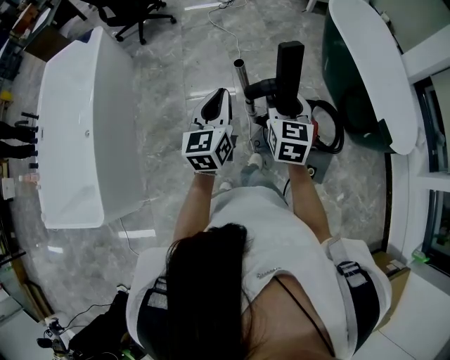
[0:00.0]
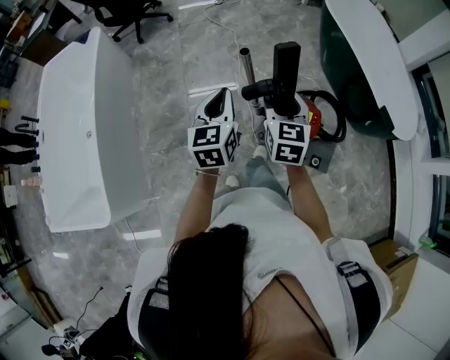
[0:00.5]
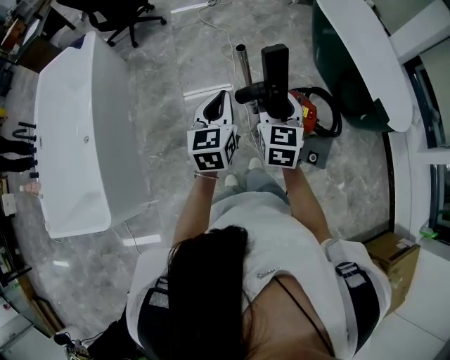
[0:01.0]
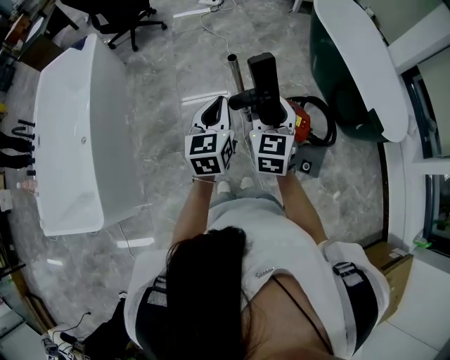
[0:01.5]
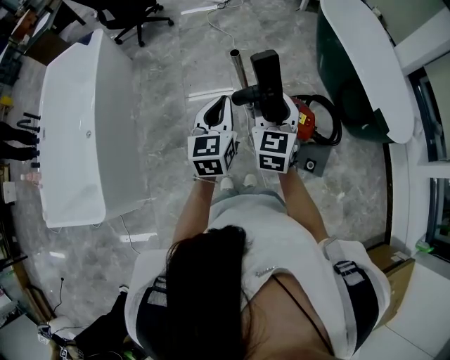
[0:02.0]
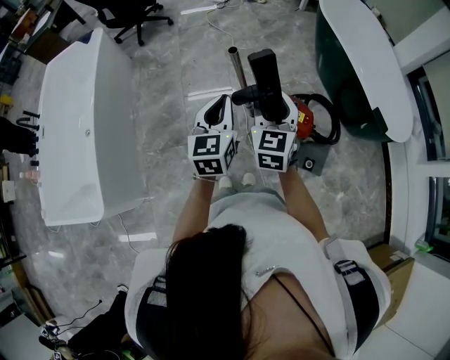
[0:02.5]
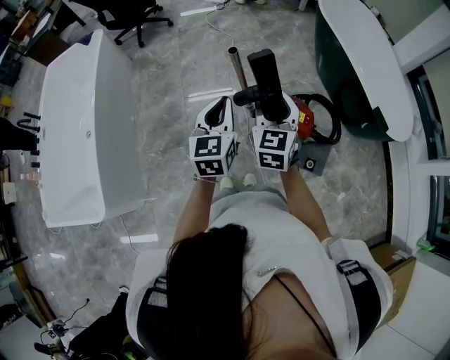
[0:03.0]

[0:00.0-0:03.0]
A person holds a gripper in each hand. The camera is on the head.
0:00.0 to 0:01.5: Both grippers travel together backward, approximately 5 cm.
0:01.5 to 0:03.0: There are only small adjustments of the grippers.

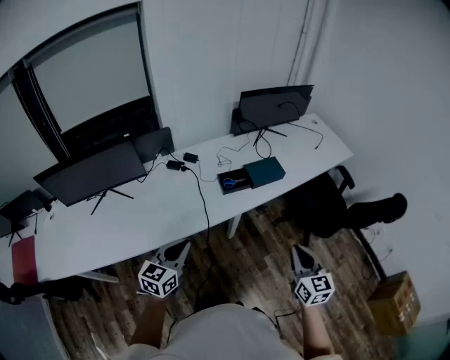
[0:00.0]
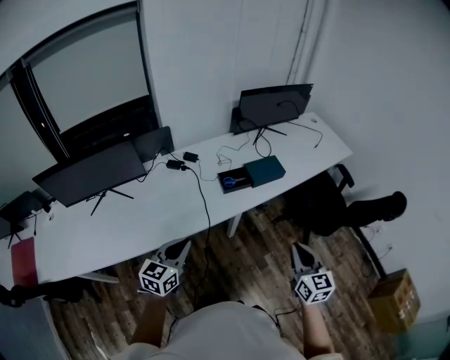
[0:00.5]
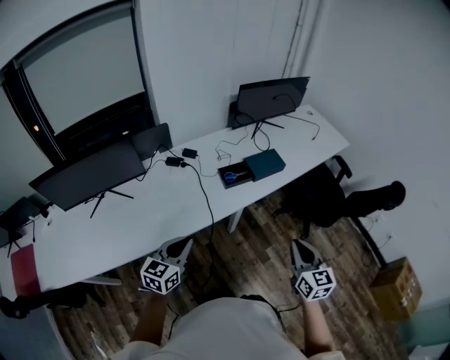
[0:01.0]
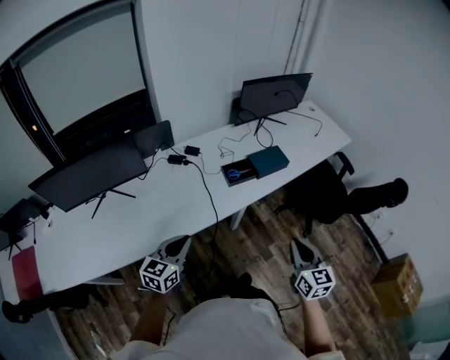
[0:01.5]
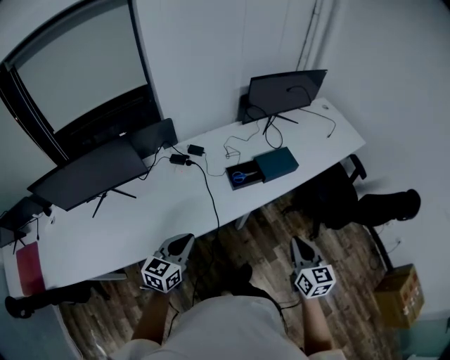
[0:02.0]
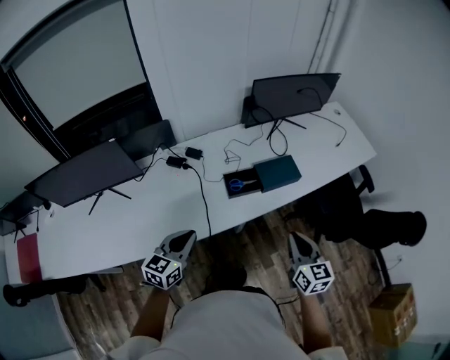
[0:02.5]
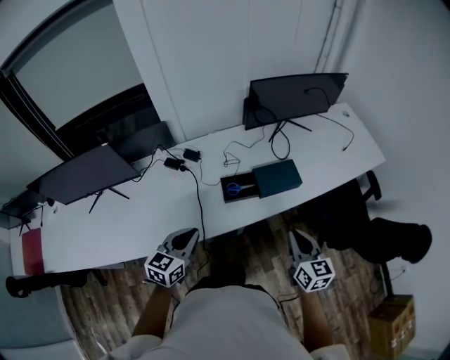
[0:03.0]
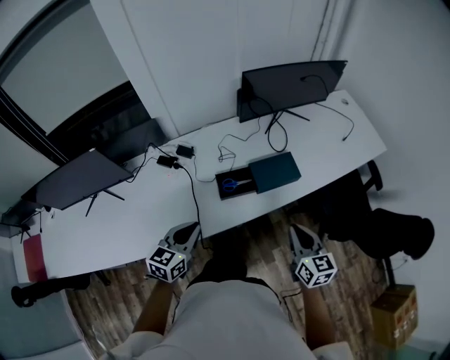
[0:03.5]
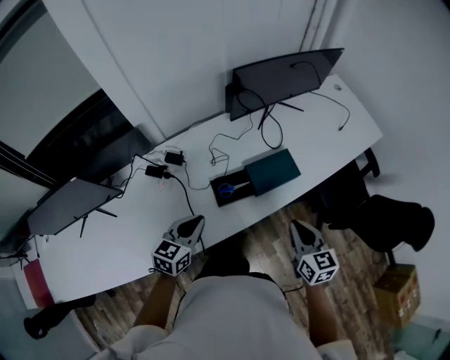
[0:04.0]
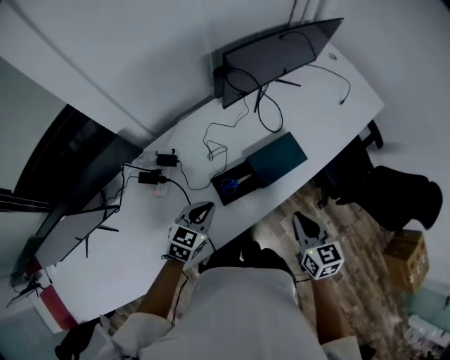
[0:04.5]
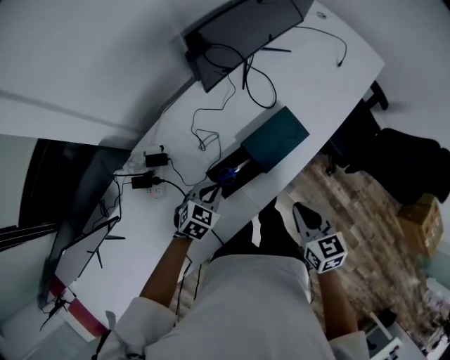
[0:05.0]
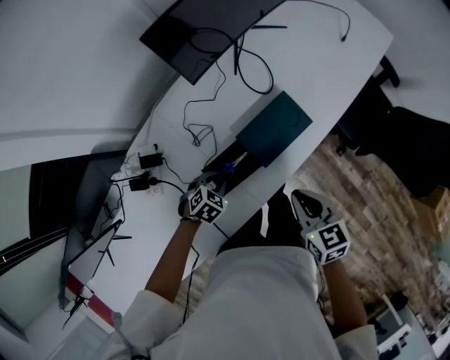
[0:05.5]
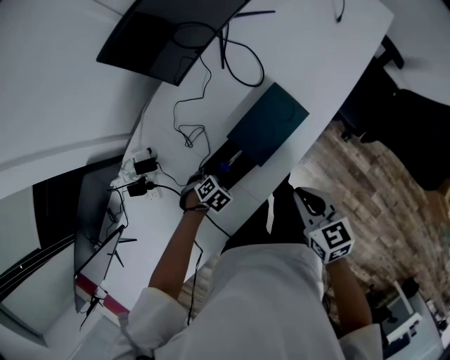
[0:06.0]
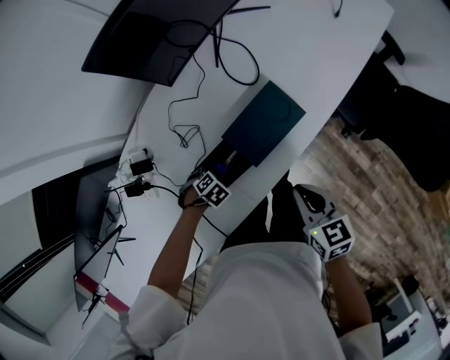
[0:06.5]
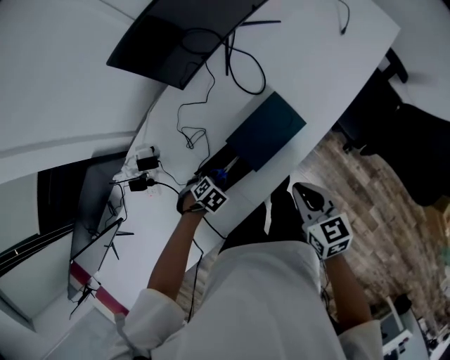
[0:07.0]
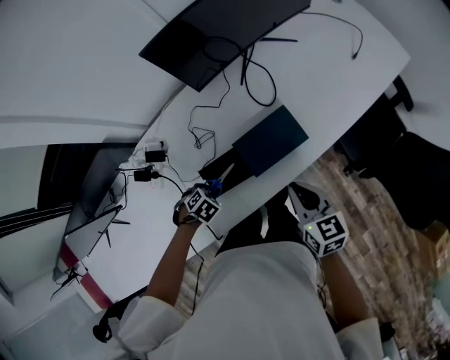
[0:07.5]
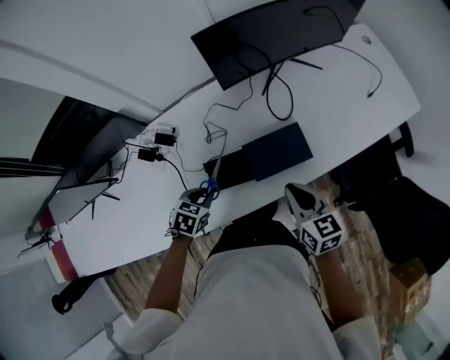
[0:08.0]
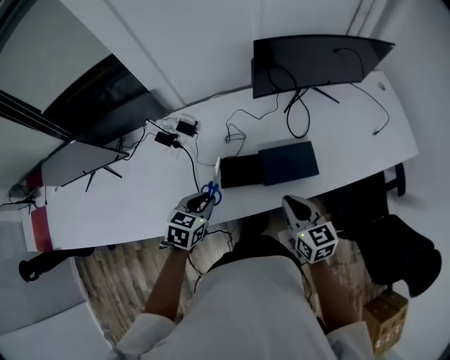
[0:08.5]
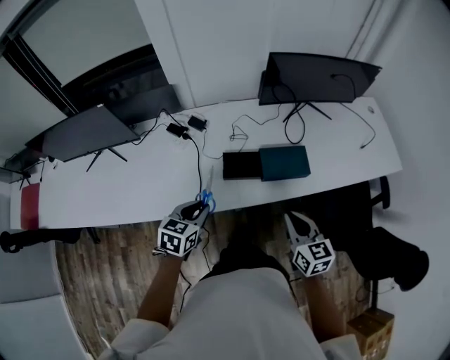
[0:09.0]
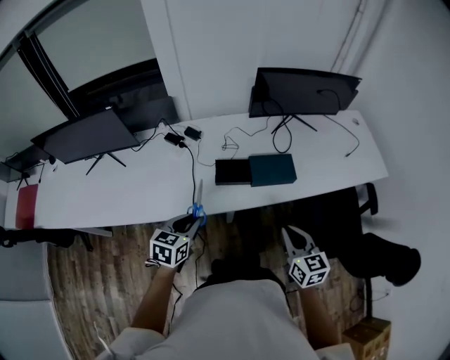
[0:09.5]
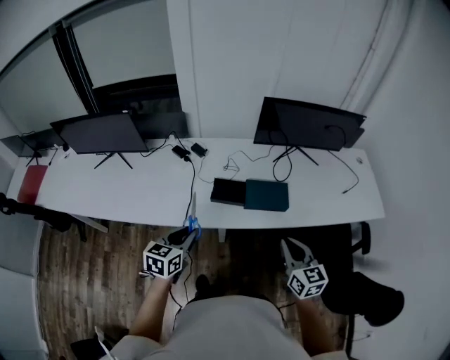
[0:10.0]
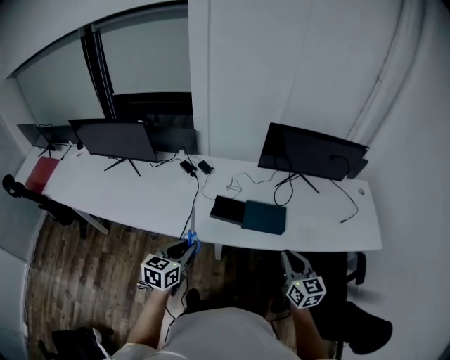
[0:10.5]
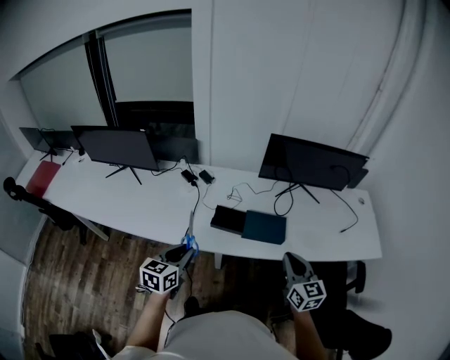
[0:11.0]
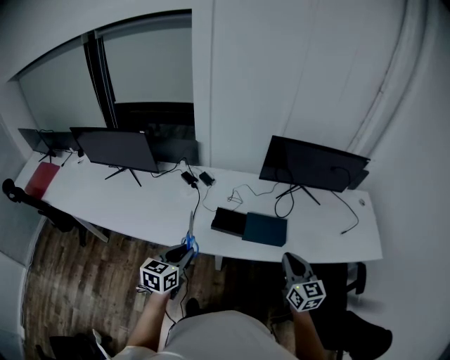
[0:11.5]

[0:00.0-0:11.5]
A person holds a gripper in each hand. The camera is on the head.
0:00.0 to 0:02.0: The left gripper moves forward, approximately 5 cm; the right gripper moves forward and to the left, roughly 10 cm.
0:02.0 to 0:04.0: Both grippers move forward, about 25 cm.
0:04.0 to 0:06.0: The right gripper goes about 15 cm downward, while the left gripper travels downward by approximately 30 cm, tips its fingers downward by roughly 60 degrees, and opens up.
0:06.0 to 0:07.5: The right gripper changes place by roughly 5 cm. Meanwhile the left gripper travels upward by roughly 5 cm.
0:07.5 to 0:09.5: The left gripper travels upward by some 25 cm, and tilts its fingers roughly 50 degrees upward, while the right gripper shifts by about 25 cm, and swivels some 20 degrees.
0:09.5 to 0:11.5: The right gripper is displaced to the right, upward and forward by about 15 cm, while the left gripper is displaced upward by some 5 cm, and changes its angle by about 20 degrees.

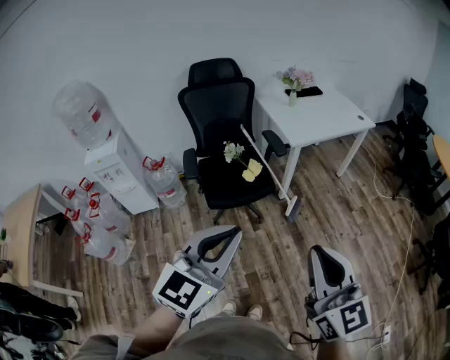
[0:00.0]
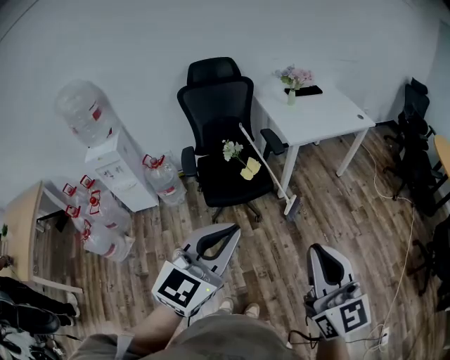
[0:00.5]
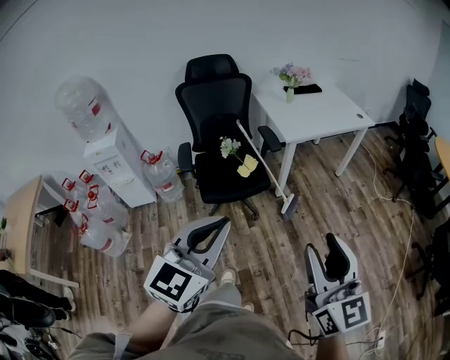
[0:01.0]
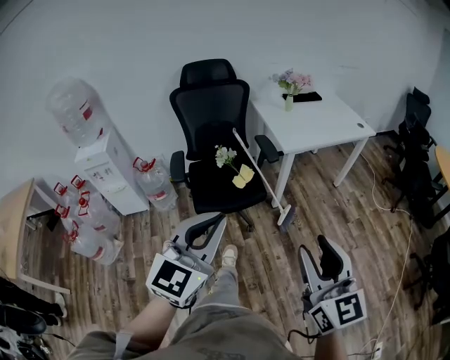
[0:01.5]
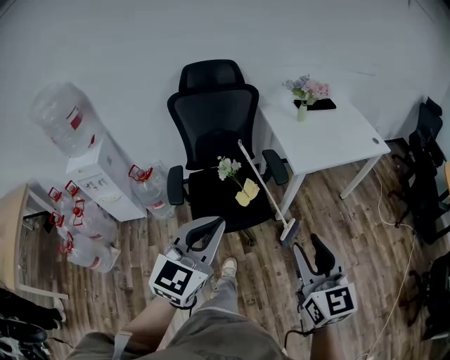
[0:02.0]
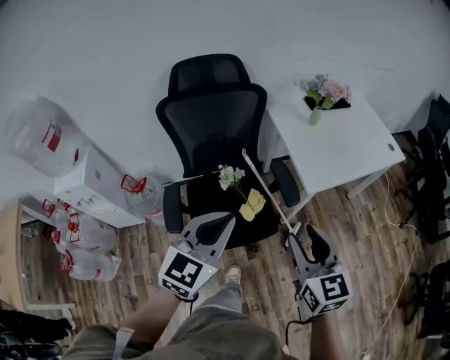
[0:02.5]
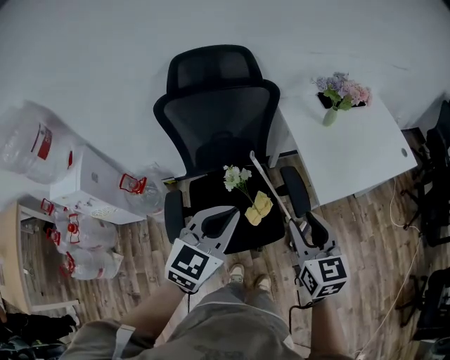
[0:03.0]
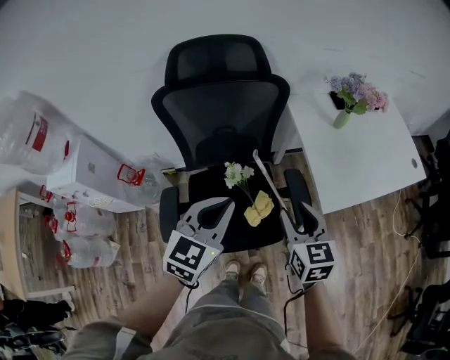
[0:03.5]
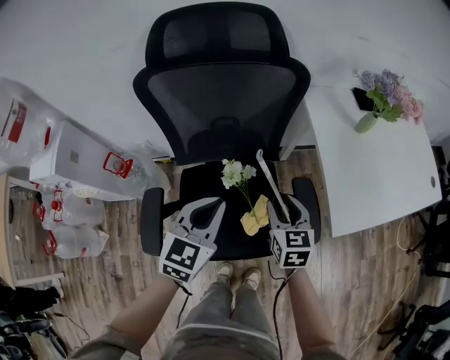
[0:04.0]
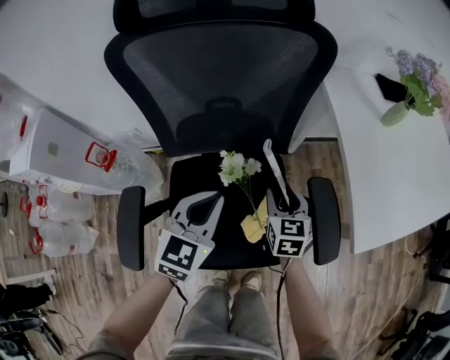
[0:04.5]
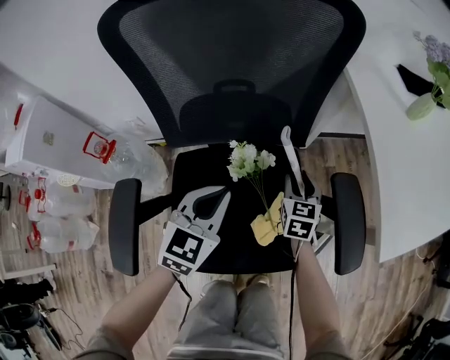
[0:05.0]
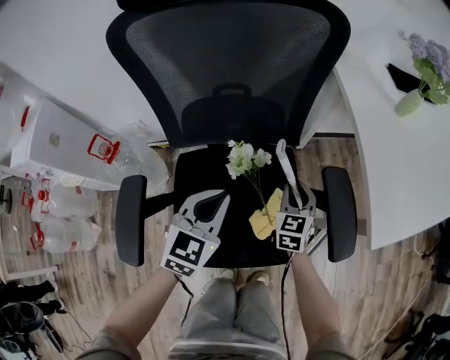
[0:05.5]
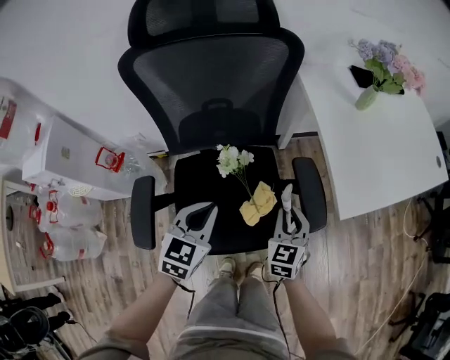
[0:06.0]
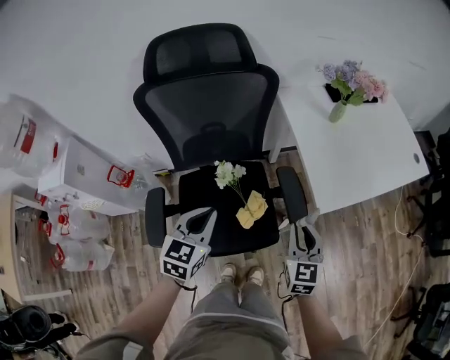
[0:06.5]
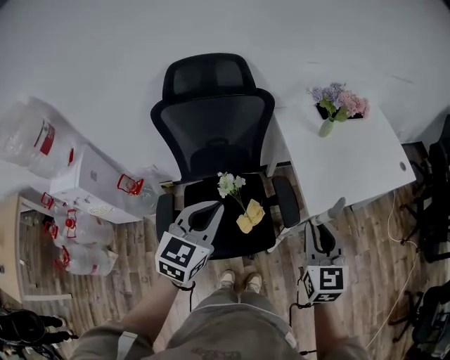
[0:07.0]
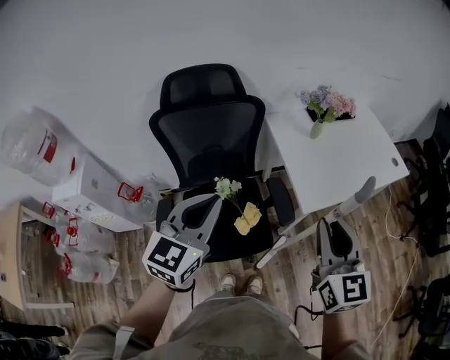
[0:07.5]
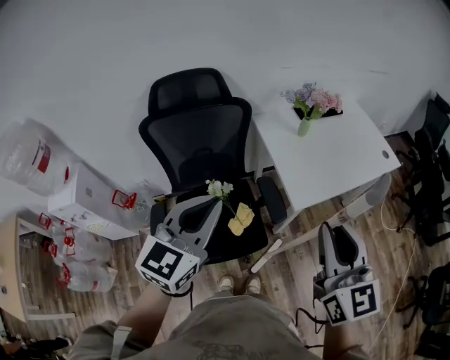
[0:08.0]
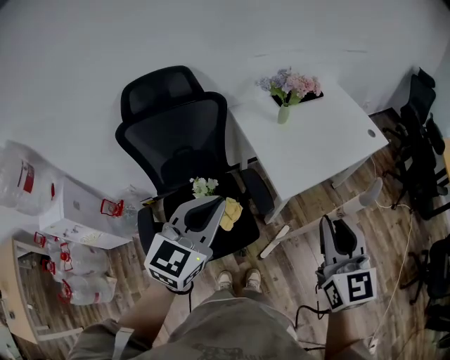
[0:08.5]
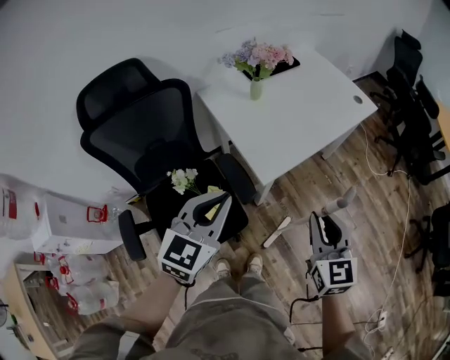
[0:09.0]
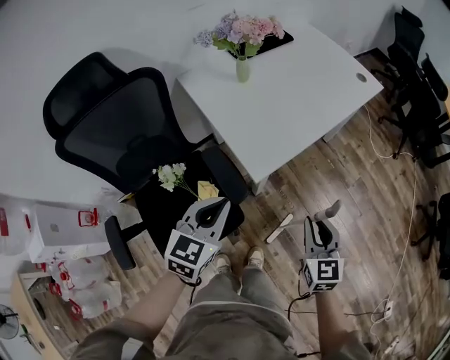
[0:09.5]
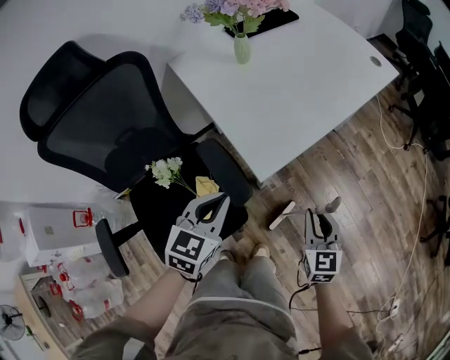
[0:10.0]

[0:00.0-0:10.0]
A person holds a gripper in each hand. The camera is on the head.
0:00.0 to 0:02.0: Both grippers travel together forward, some 25 cm. The right gripper opens.
0:02.0 to 0:04.0: Both grippers are carried forward, approximately 50 cm. The two grippers go about 25 cm downward. The right gripper turns by approximately 20 degrees, while the left gripper turns by some 20 degrees.
0:04.0 to 0:06.0: The left gripper heads downward, covering about 10 cm; the right gripper heads downward, backward and to the right, covering roughly 10 cm, and closes.
0:06.0 to 0:08.0: The grippers both shift upward by approximately 40 cm. The right gripper changes its angle by approximately 30 degrees, while the left gripper rotates some 30 degrees.
0:08.0 to 0:10.0: The right gripper shifts roughly 40 cm downward, and turns by approximately 30 degrees. Meanwhile the left gripper heads downward, to the right and forward, covering about 40 cm, and turns by roughly 30 degrees.

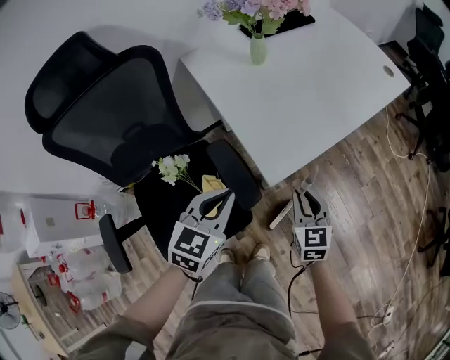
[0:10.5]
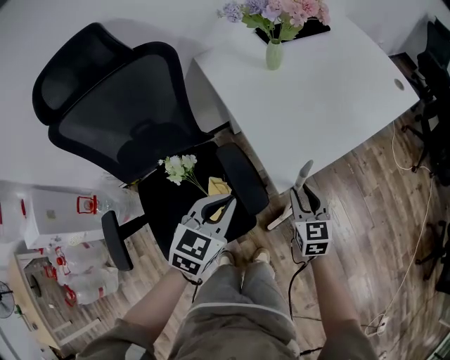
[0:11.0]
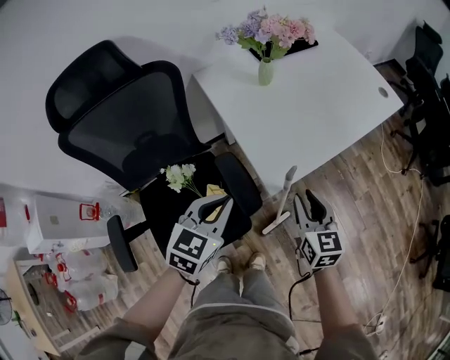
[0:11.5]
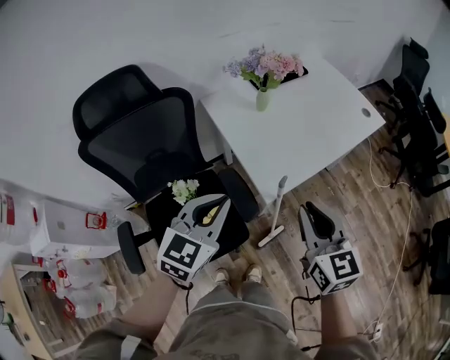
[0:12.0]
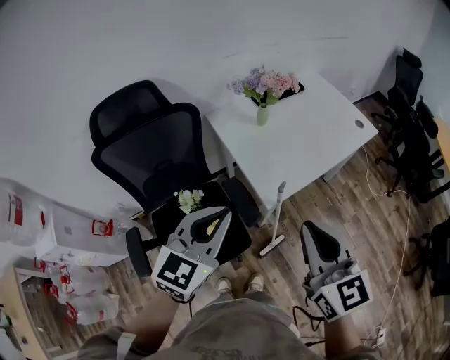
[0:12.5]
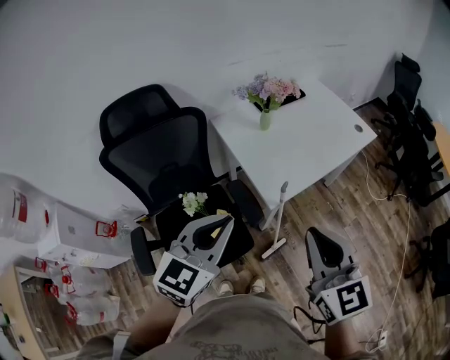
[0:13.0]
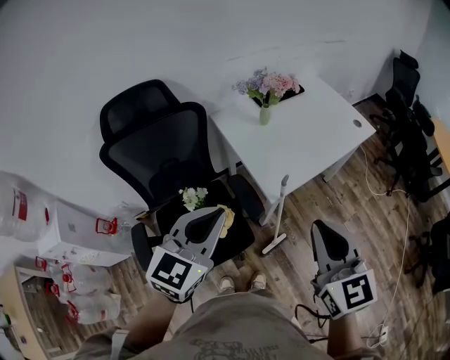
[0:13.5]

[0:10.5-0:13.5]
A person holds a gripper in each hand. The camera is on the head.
0:10.5 to 0:12.0: The right gripper heads upward, covering about 30 cm; the left gripper goes about 20 cm upward.
0:12.0 to 0:13.5: The two grippers go about 15 cm upward and backward.
